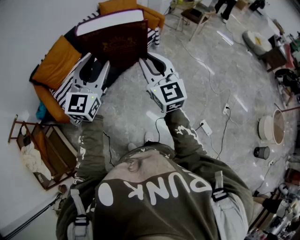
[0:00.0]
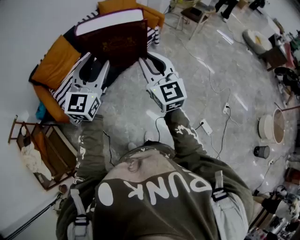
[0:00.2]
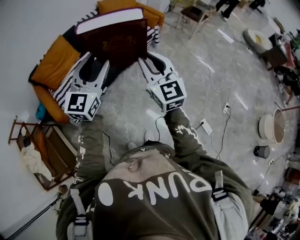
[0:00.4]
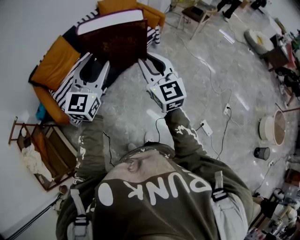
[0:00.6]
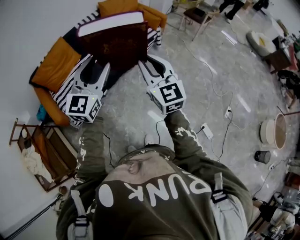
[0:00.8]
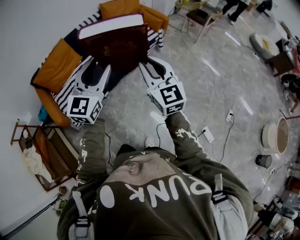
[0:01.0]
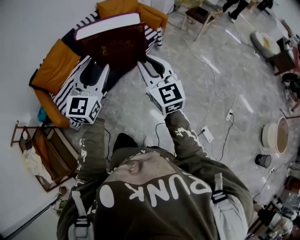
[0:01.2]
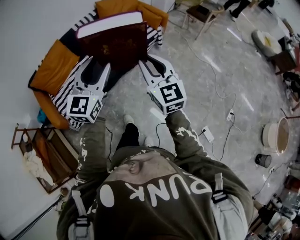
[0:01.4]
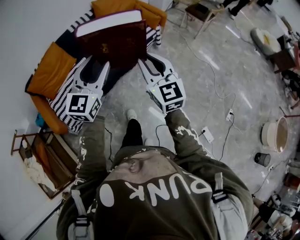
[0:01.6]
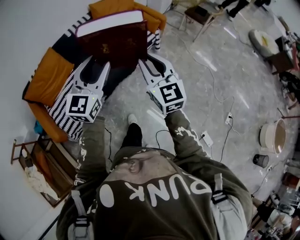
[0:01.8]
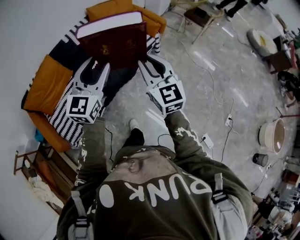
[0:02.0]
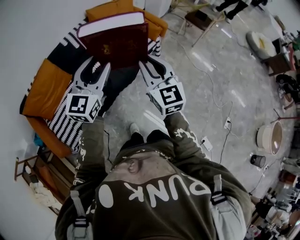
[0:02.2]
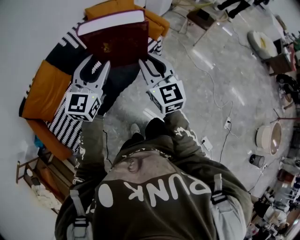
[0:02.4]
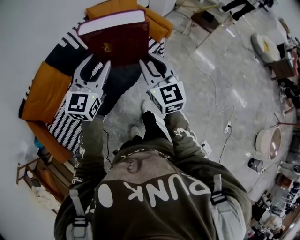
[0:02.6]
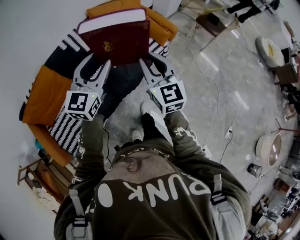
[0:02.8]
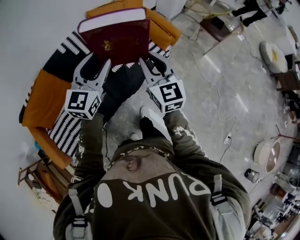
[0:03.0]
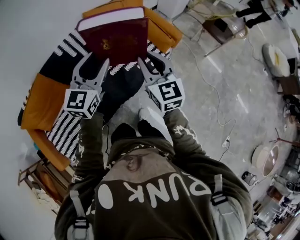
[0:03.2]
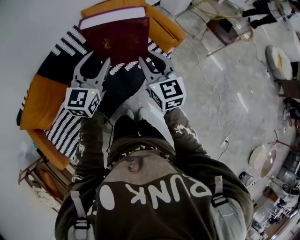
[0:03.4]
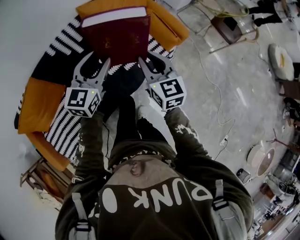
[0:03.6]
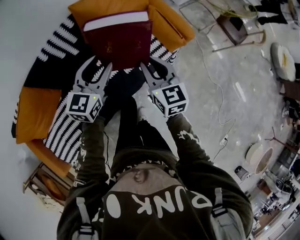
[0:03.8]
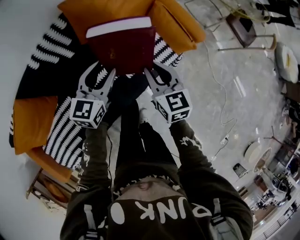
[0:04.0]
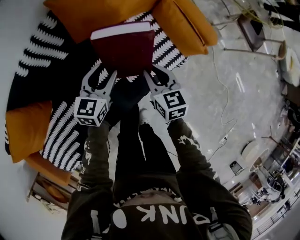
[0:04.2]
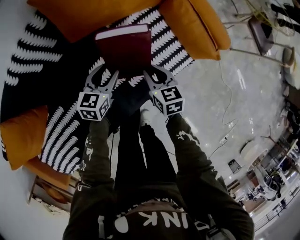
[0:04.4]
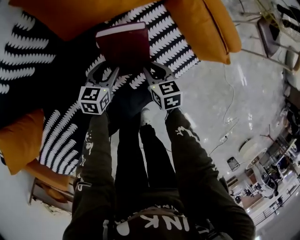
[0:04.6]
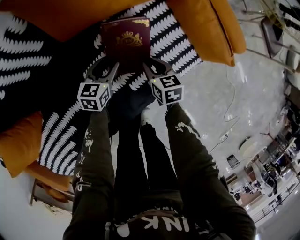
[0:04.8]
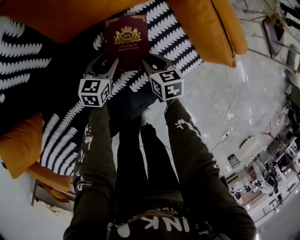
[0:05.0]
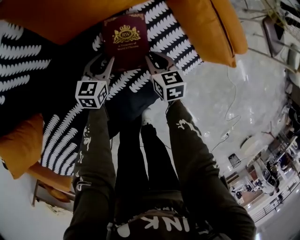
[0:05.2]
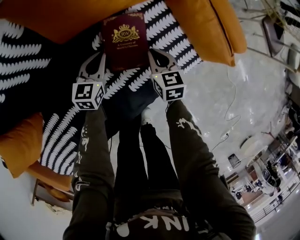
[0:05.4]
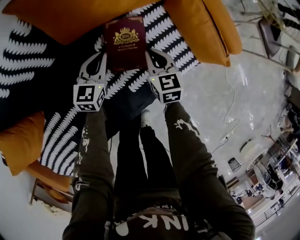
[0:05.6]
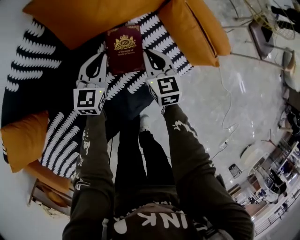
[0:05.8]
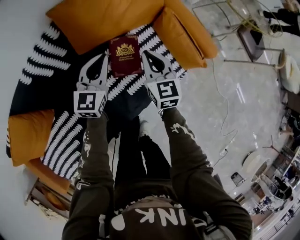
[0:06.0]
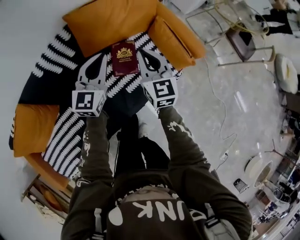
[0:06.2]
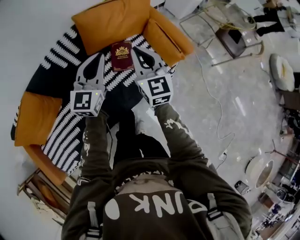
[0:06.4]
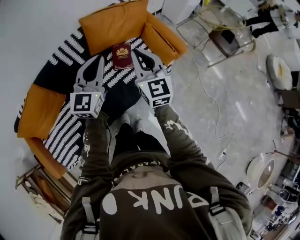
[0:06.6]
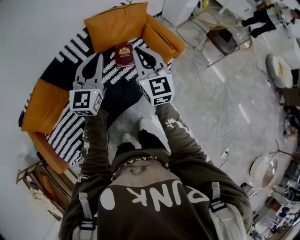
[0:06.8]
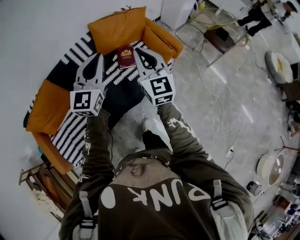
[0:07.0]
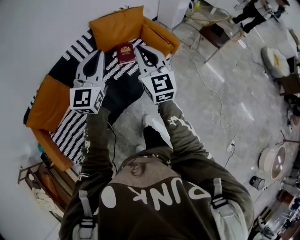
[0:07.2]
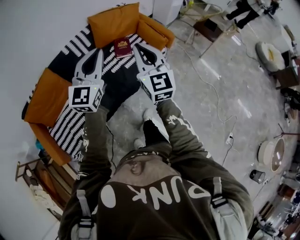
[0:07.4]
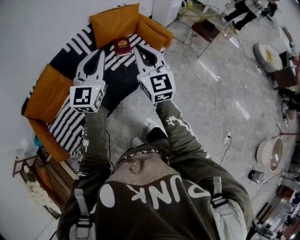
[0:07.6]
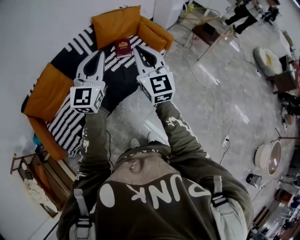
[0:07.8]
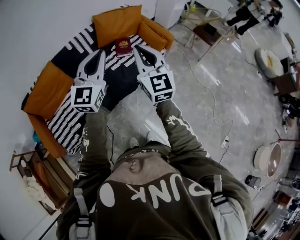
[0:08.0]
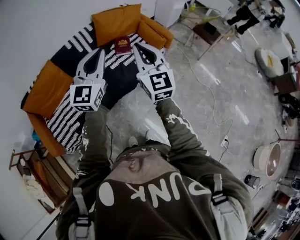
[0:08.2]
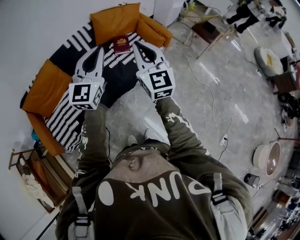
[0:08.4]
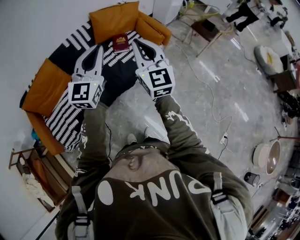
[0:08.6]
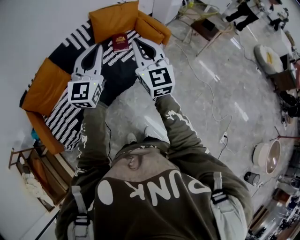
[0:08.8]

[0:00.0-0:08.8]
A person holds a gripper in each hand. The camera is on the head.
0:00.0 to 0:01.4: Both grippers travel together forward and to the right, some 15 cm.
0:01.4 to 0:03.0: The pair of grippers is taken forward, about 50 cm.
0:03.0 to 0:04.4: Both grippers move downward and forward, about 60 cm. The right gripper points its fingers about 40 degrees further downward; the left gripper angles its fingers downward, by roughly 30 degrees.
0:04.4 to 0:05.8: Both grippers move forward, about 10 cm. The right gripper travels downward and back again, approximately 10 cm each way. Meanwhile the left gripper travels downward and back again, some 10 cm each way, swivels some 20 degrees, and closes its fingers.
0:05.8 to 0:07.4: The pair of grippers is taken backward, some 50 cm. Both grippers travel together upward, approximately 50 cm. The right gripper tilts its fingers approximately 30 degrees upward. The left gripper swivels about 30 degrees.
0:07.4 to 0:08.8: Both grippers move backward, about 5 cm.

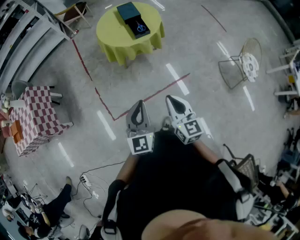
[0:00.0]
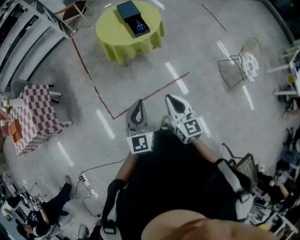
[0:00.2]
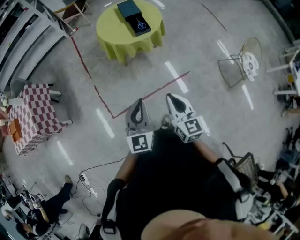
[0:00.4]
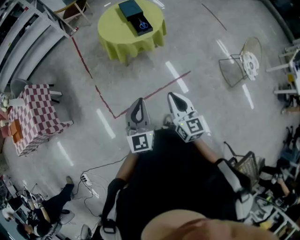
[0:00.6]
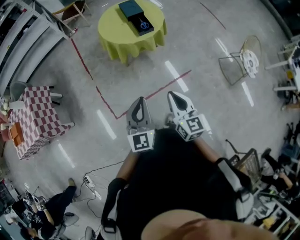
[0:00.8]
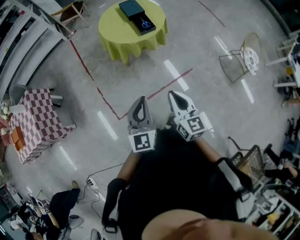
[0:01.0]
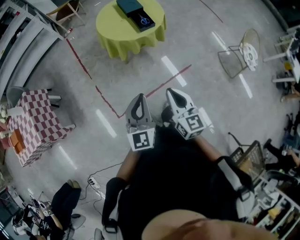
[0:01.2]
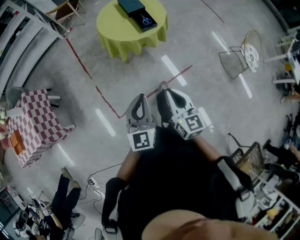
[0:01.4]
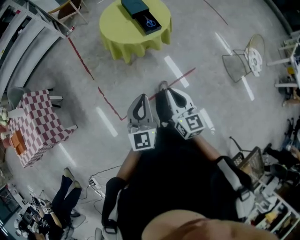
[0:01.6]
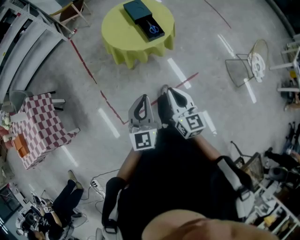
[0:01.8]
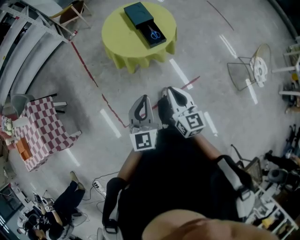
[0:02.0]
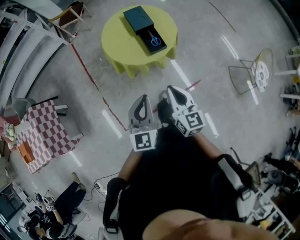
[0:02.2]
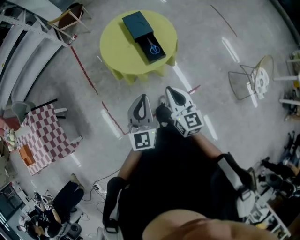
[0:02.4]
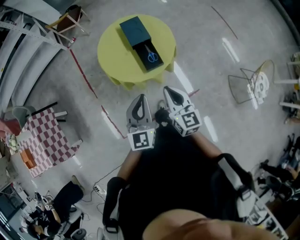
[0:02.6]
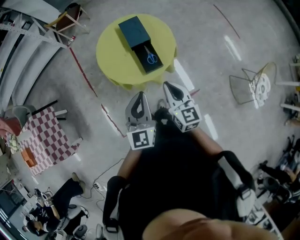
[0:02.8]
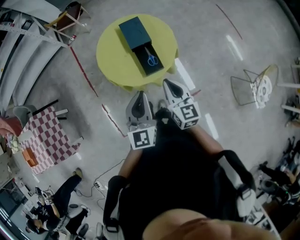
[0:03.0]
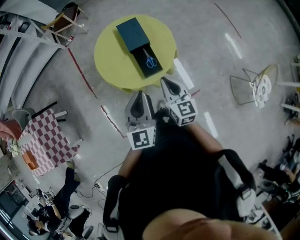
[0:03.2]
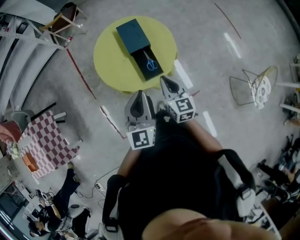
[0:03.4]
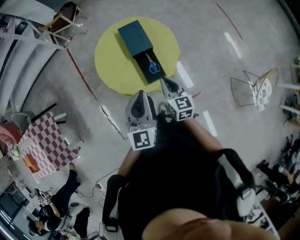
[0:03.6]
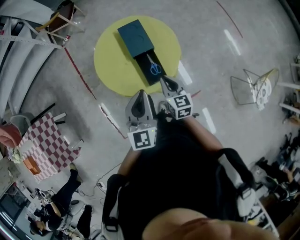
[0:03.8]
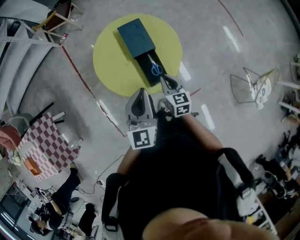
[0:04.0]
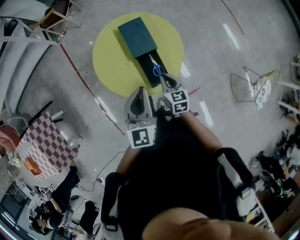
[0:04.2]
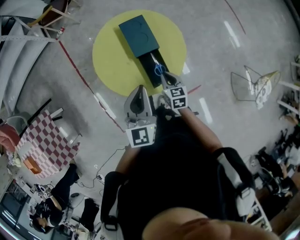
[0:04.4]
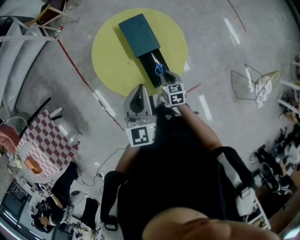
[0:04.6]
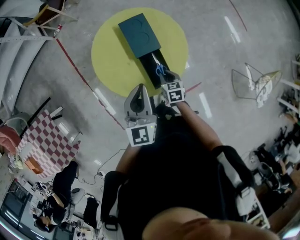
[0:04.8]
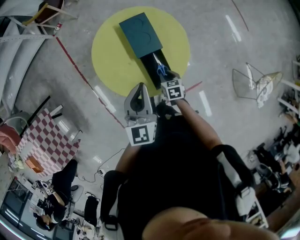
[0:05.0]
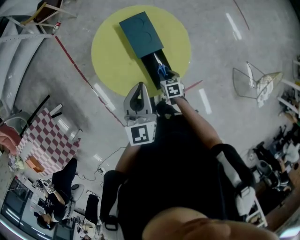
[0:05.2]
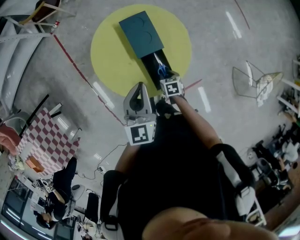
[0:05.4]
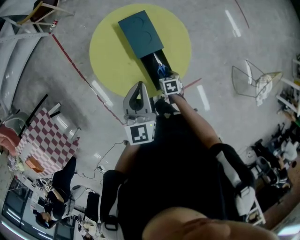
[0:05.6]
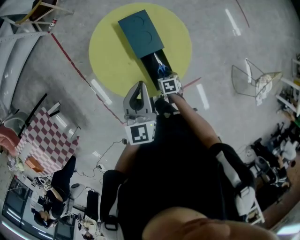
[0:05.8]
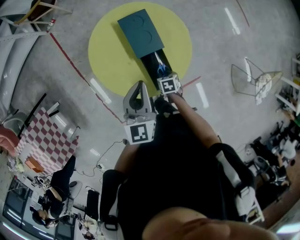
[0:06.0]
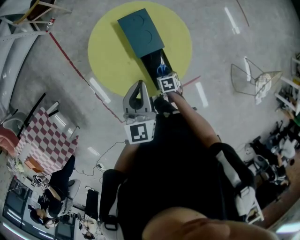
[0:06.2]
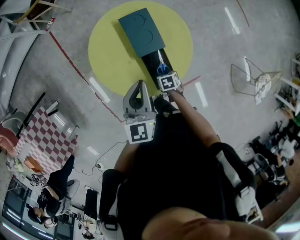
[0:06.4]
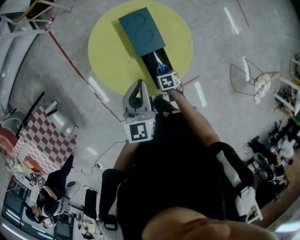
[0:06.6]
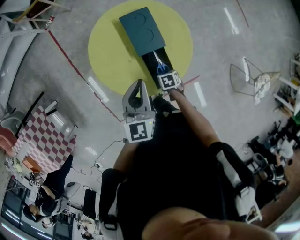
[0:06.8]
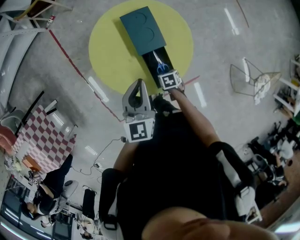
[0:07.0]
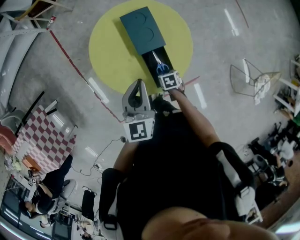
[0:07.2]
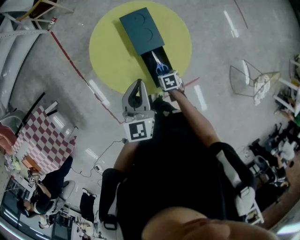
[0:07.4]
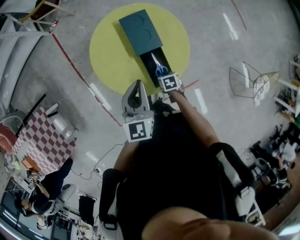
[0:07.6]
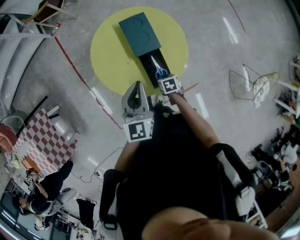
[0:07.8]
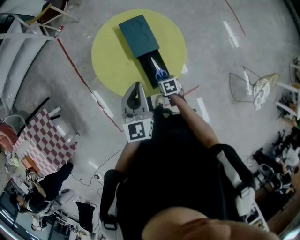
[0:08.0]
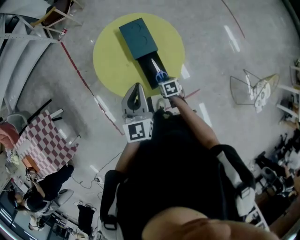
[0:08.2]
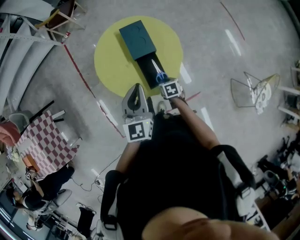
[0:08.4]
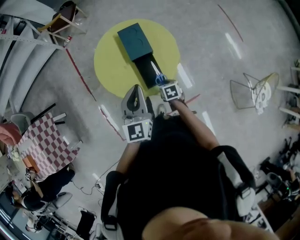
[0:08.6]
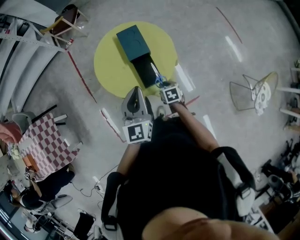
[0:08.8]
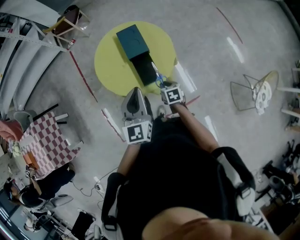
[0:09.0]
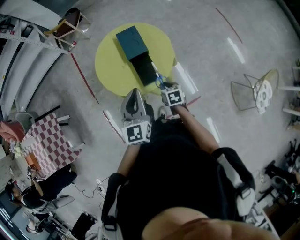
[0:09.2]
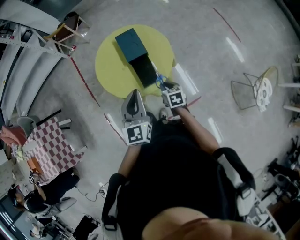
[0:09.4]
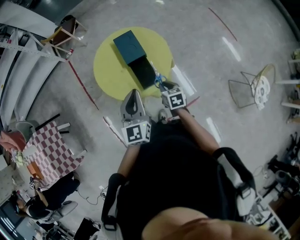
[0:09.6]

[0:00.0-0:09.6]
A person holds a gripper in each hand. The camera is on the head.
0:00.0 to 0:01.6: Both grippers move to the left and forward, about 15 cm.
0:01.6 to 0:03.2: Both grippers move forward, roughly 40 cm.
0:03.2 to 0:04.8: The right gripper travels downward and forward by approximately 30 cm, and points its fingers roughly 40 degrees further downward; the left gripper heads forward, covering approximately 15 cm.
0:04.8 to 0:06.4: The right gripper is displaced downward by some 10 cm, and swivels roughly 30 degrees; the left gripper shifts by about 5 cm.
0:06.4 to 0:08.0: The right gripper ends up about 5 cm from where it was. The left gripper moves approximately 5 cm.
0:08.0 to 0:09.6: The right gripper goes some 15 cm upward, and swivels approximately 30 degrees. Meanwhile the left gripper heads backward and upward, covering some 15 cm.

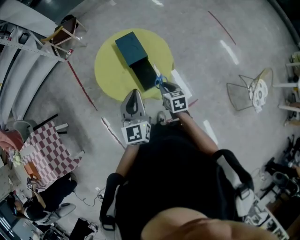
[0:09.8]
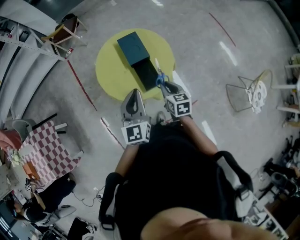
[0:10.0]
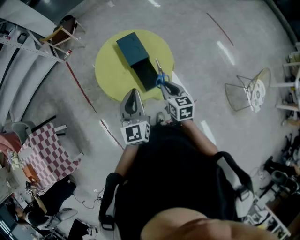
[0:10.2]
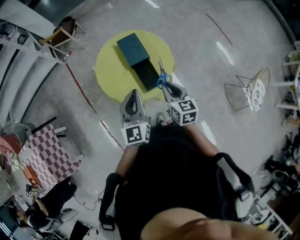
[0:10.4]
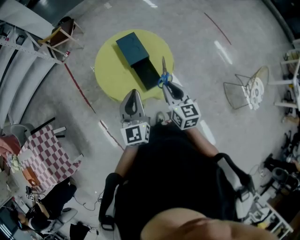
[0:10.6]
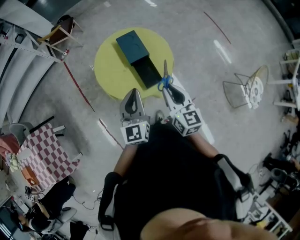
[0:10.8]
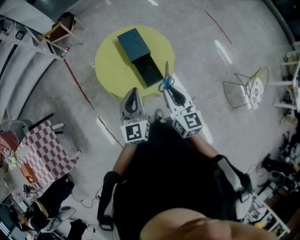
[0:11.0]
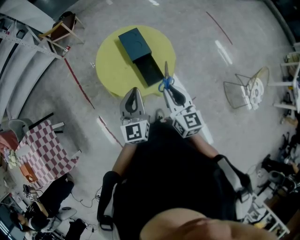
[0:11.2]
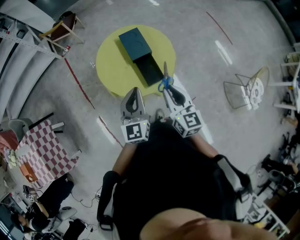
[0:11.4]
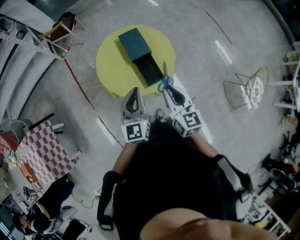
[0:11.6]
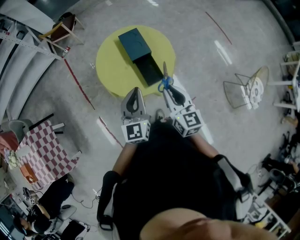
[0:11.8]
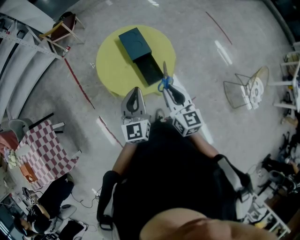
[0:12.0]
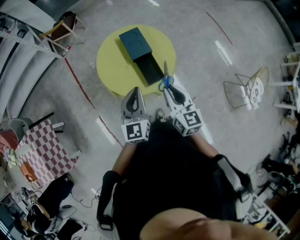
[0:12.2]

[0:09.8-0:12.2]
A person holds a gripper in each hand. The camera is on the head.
0:09.8 to 0:11.0: The right gripper travels upward by approximately 15 cm, and angles its fingers upward, by about 30 degrees.
0:11.0 to 0:12.2: Both grippers stay about where they are.

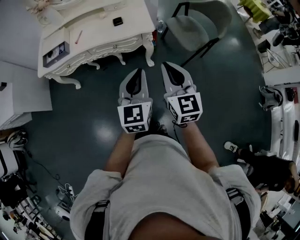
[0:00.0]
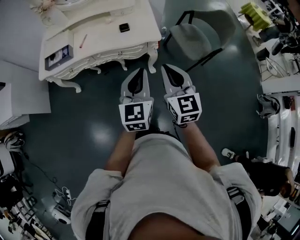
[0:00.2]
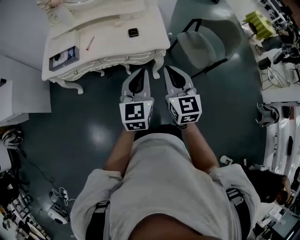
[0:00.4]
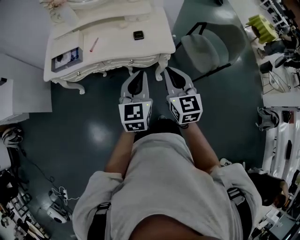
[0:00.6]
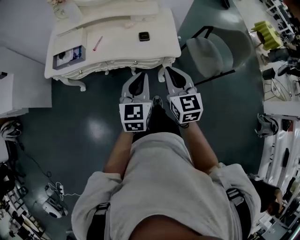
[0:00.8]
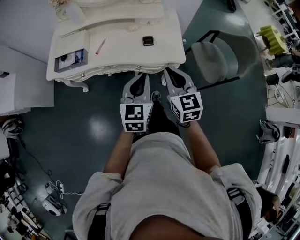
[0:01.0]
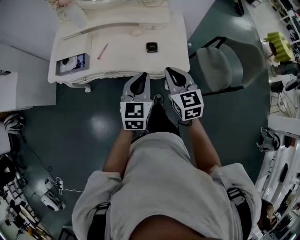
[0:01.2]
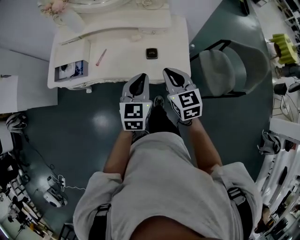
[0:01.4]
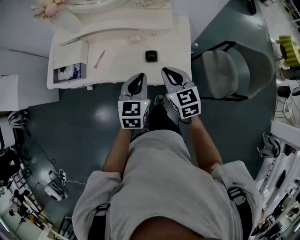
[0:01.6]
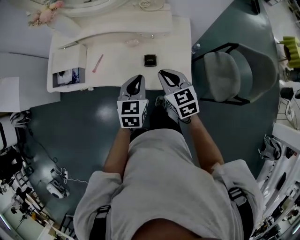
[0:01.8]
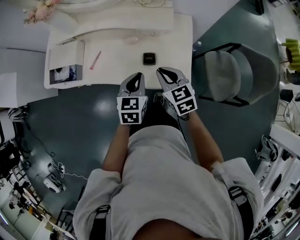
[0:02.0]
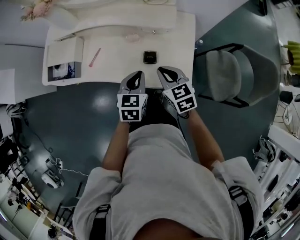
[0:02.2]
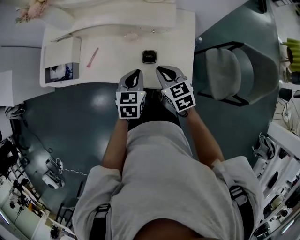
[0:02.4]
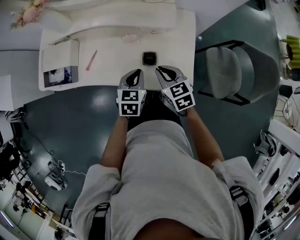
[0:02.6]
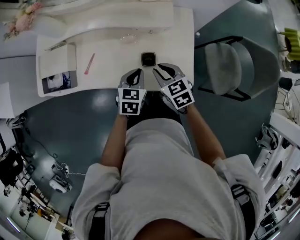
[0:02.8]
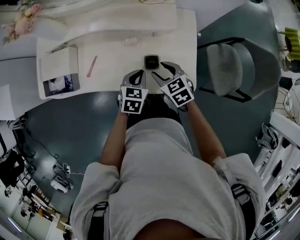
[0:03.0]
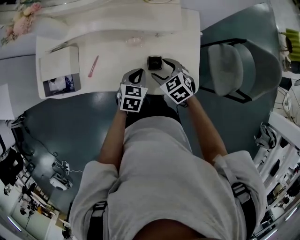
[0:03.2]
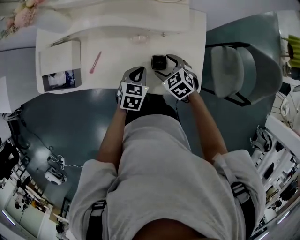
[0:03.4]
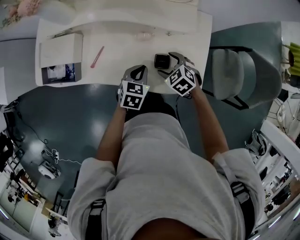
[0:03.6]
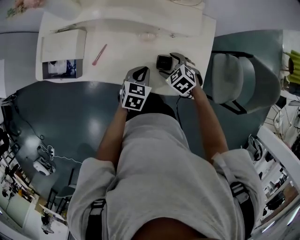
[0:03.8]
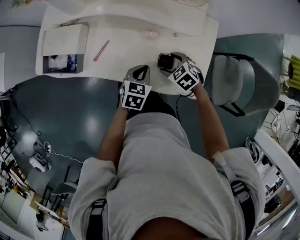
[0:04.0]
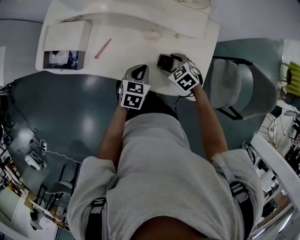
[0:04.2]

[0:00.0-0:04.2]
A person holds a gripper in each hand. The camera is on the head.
0:00.0 to 0:01.4: Both grippers move forward, about 35 cm. The right gripper rotates roughly 20 degrees.
0:01.4 to 0:02.8: The grippers both shift downward and forward by roughly 20 cm. The left gripper rotates approximately 20 degrees. The right gripper rotates about 20 degrees.
0:02.8 to 0:04.2: The left gripper is displaced to the left by roughly 5 cm. Meanwhile the right gripper travels downward and forward by roughly 10 cm, swivels about 30 degrees, and opens its fingers.
